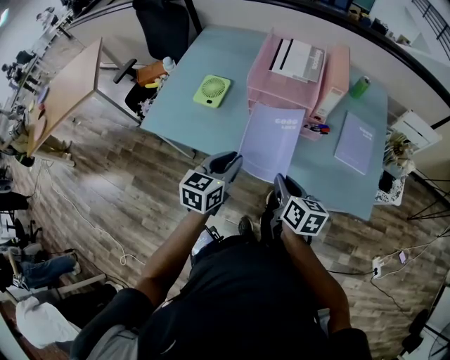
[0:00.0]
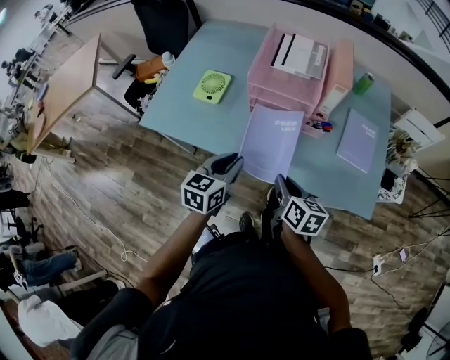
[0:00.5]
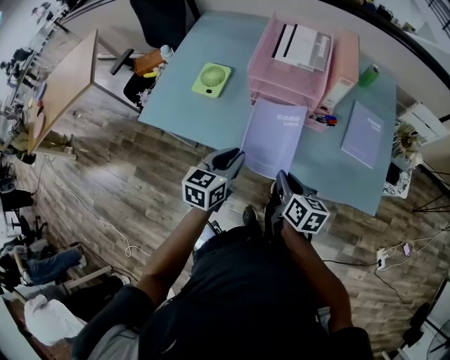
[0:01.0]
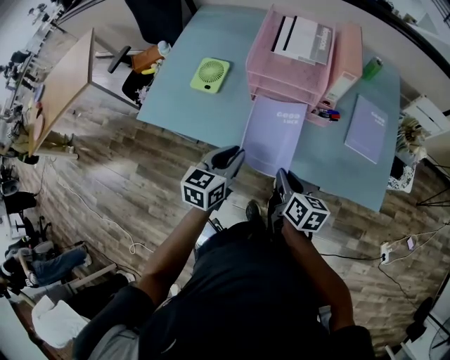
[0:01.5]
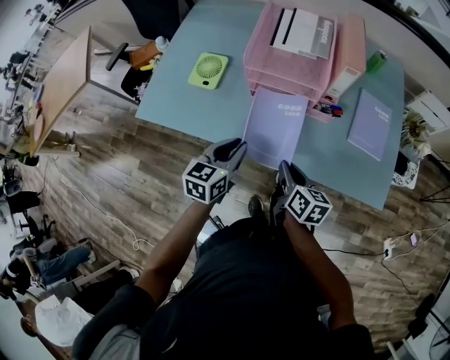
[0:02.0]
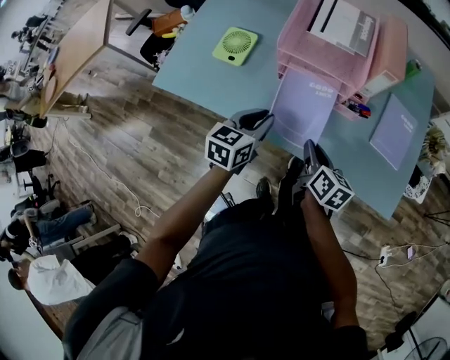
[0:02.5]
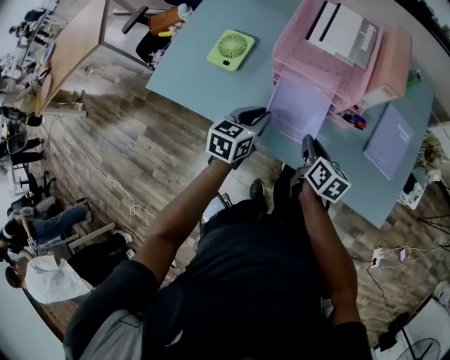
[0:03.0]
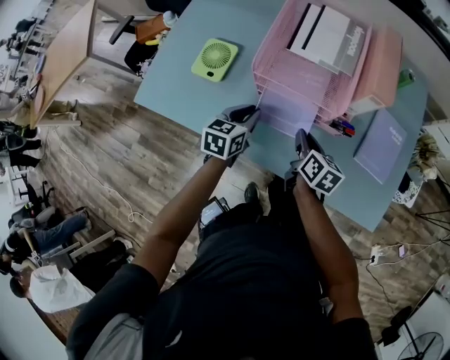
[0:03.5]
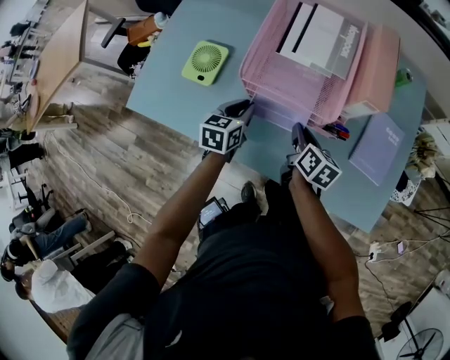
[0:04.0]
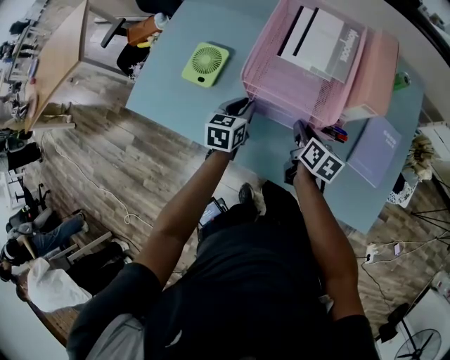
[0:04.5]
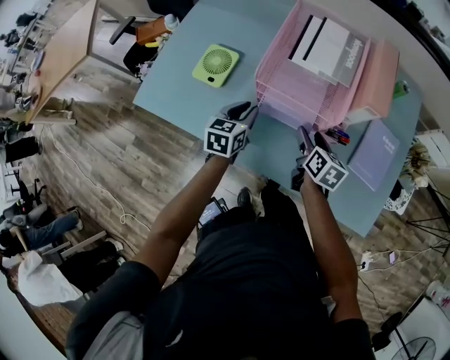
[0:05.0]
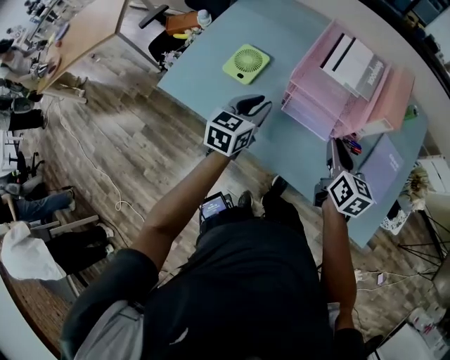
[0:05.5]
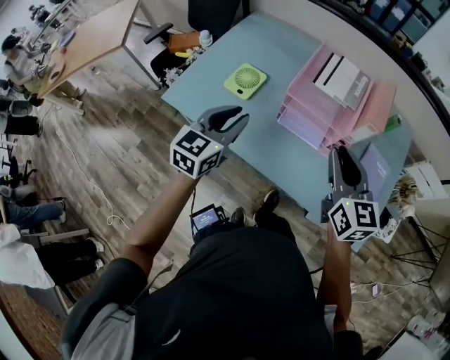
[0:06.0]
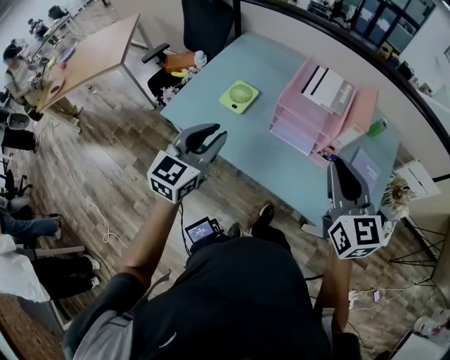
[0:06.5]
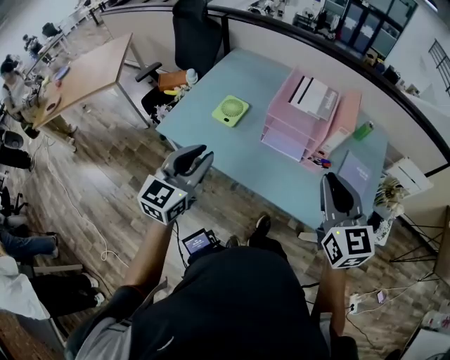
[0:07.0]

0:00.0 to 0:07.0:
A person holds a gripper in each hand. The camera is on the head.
0:00.0 to 0:02.0: The two grippers go approximately 5 cm downward.
0:02.0 to 0:03.5: The left gripper moves forward and downward, roughly 15 cm, while the right gripper shifts roughly 15 cm forward.
0:03.5 to 0:05.0: The right gripper opens its fingers.
0:05.0 to 0:07.0: The right gripper travels upward and backward by roughly 40 cm, rotates around the line of its fingers by about 40 degrees, counterclockwise from behind, and closes up. The left gripper travels upward, backward and to the left by roughly 35 cm, and swivels approximately 30 degrees.

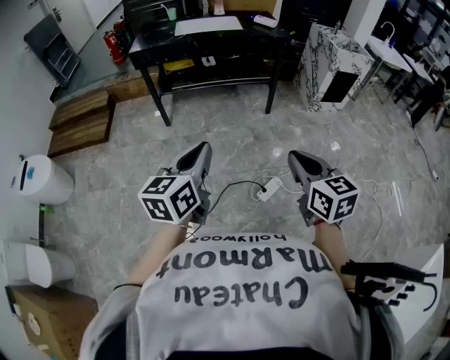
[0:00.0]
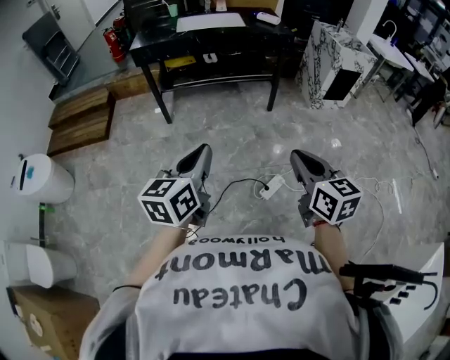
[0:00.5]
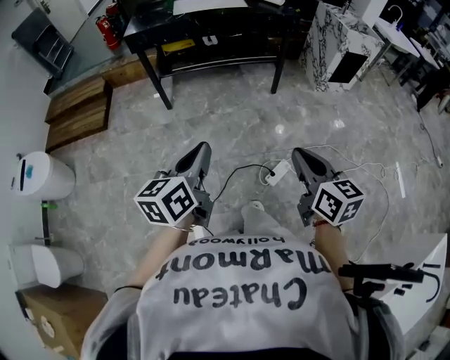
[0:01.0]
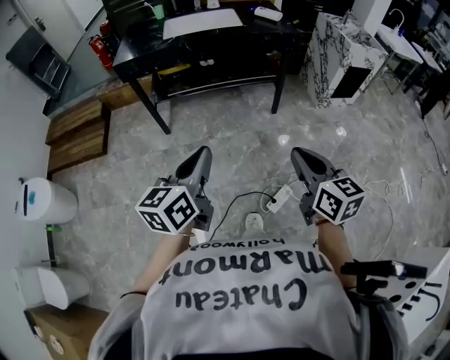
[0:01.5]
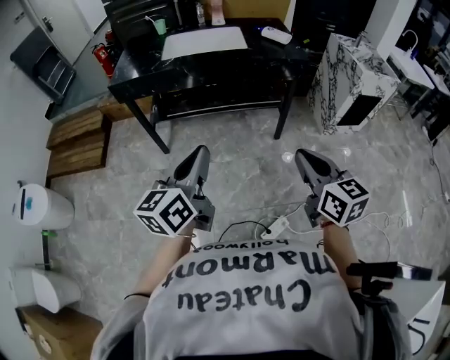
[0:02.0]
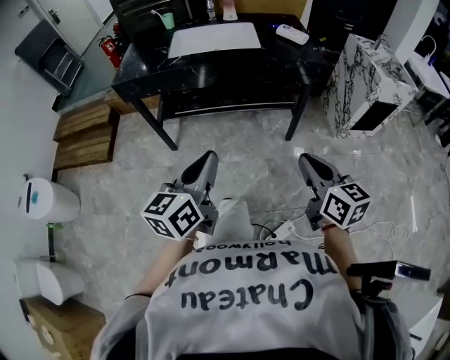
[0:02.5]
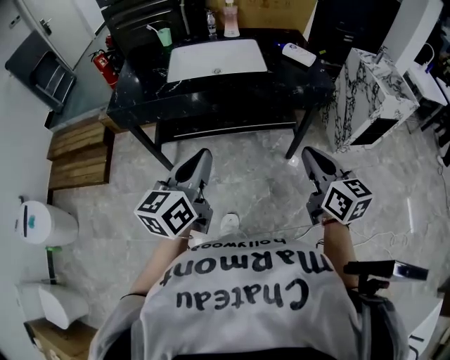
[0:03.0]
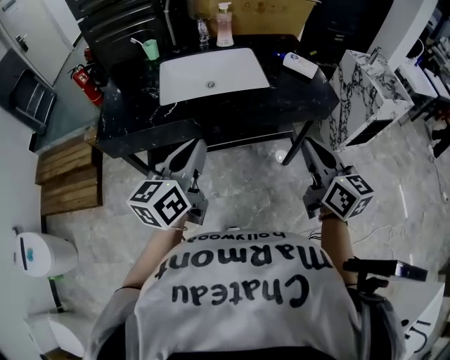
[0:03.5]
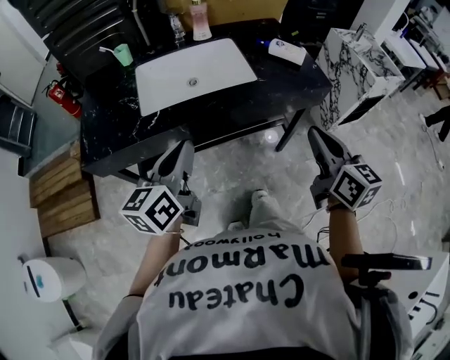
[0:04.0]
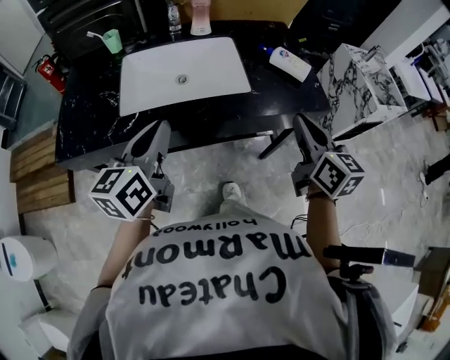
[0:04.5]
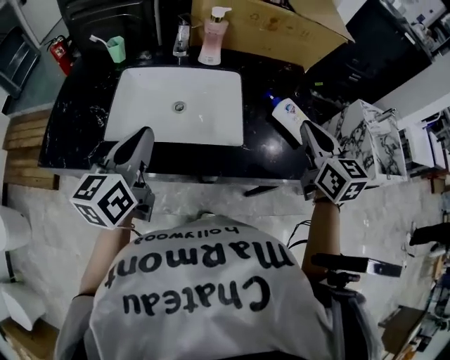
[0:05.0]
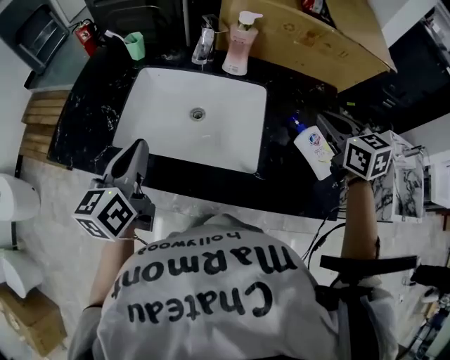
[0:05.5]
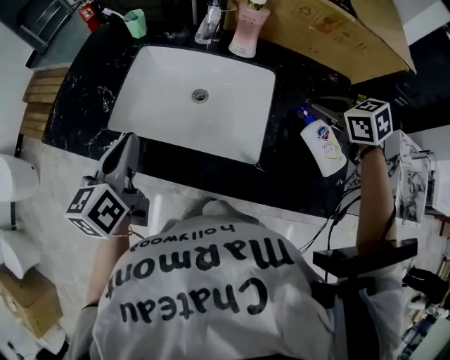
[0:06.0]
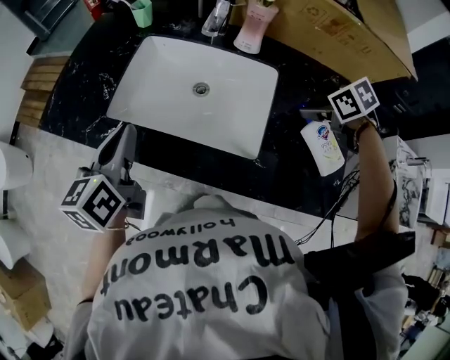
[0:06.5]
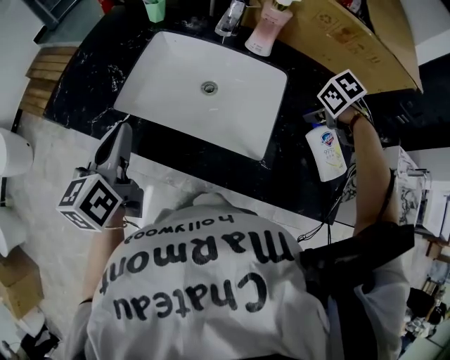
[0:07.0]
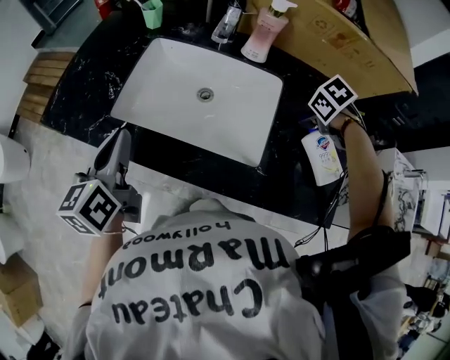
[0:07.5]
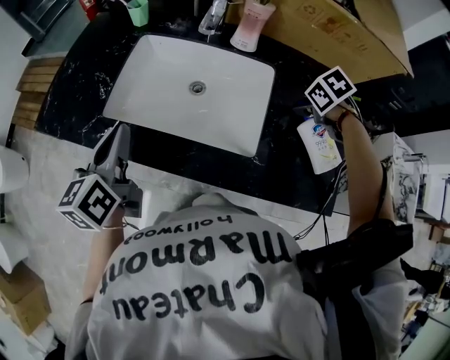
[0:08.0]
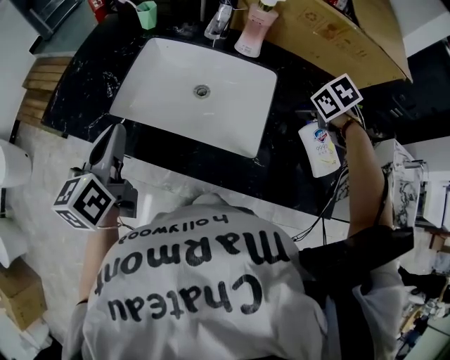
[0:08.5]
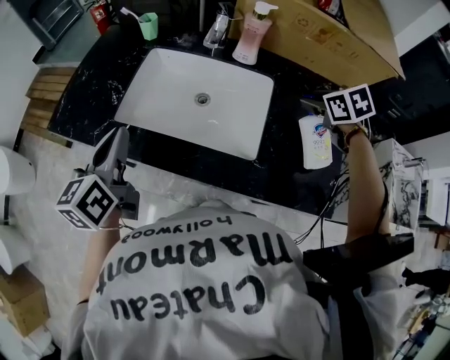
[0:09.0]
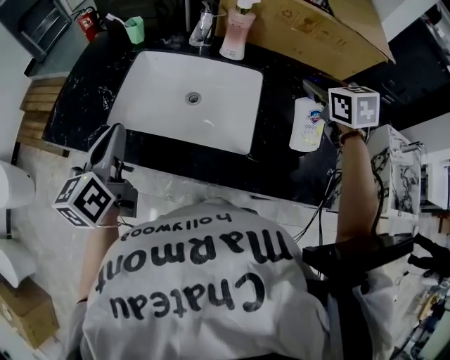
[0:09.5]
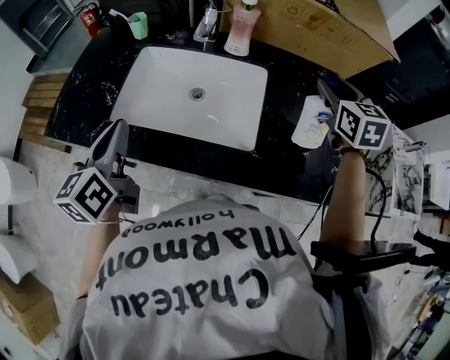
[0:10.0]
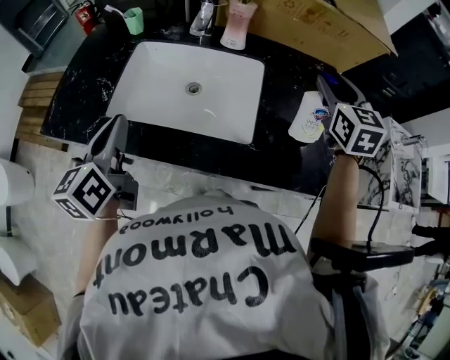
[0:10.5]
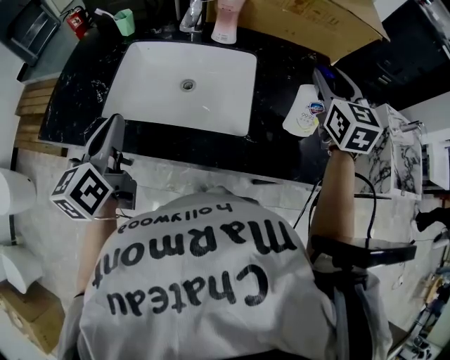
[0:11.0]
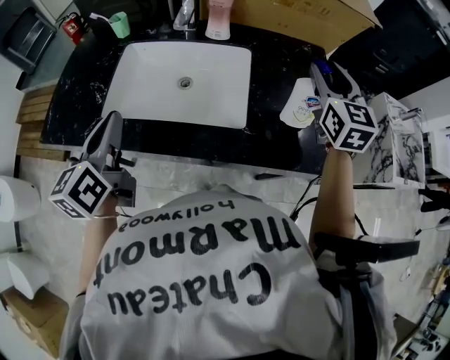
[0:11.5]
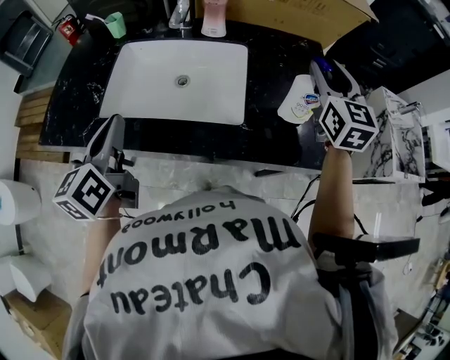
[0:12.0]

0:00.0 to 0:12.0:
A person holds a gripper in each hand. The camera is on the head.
0:00.0 to 0:02.0: The two grippers go approximately 35 cm forward.
0:02.0 to 0:04.0: The grippers both shift forward by about 35 cm.
0:04.0 to 0:06.0: The right gripper ends up roughly 50 cm from where it was, and angles its fingers downward, by approximately 40 degrees; the left gripper changes place by approximately 20 cm, and turns by about 40 degrees.
0:06.0 to 0:08.0: The right gripper travels downward by about 10 cm, tilts its fingers some 30 degrees downward, and opens.
0:08.0 to 0:10.0: The right gripper shifts some 15 cm upward, and tilts its fingers roughly 60 degrees upward.
0:10.0 to 0:12.0: The right gripper shifts about 10 cm backward.

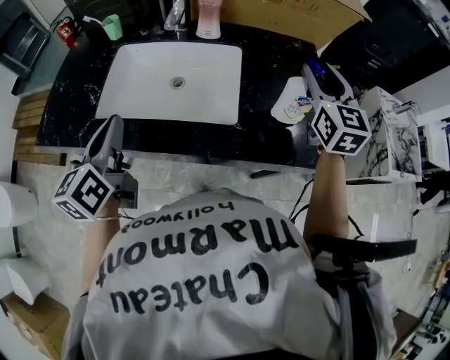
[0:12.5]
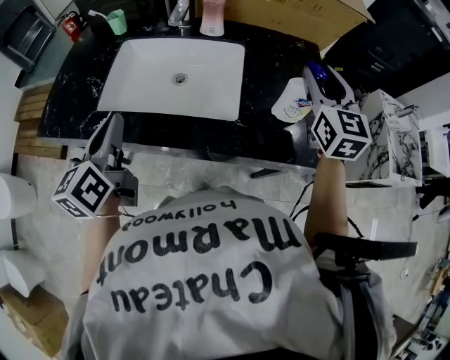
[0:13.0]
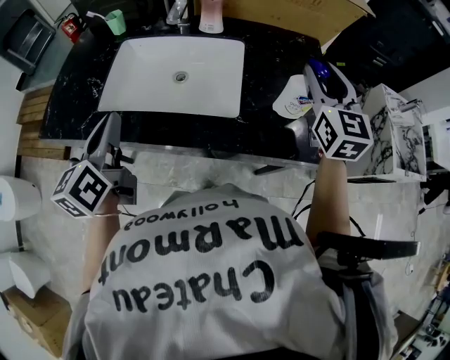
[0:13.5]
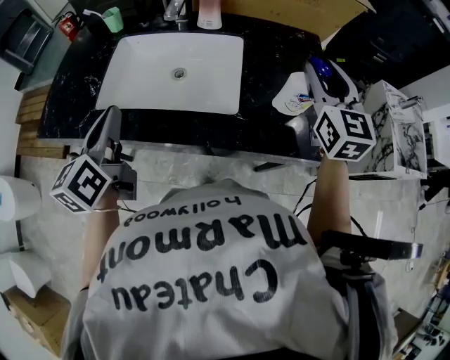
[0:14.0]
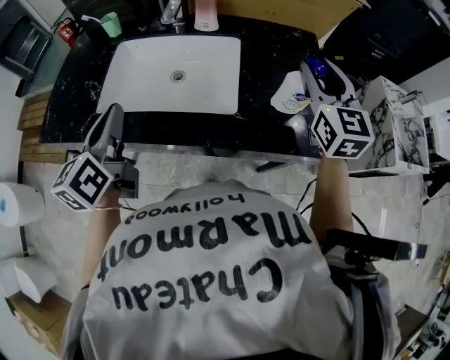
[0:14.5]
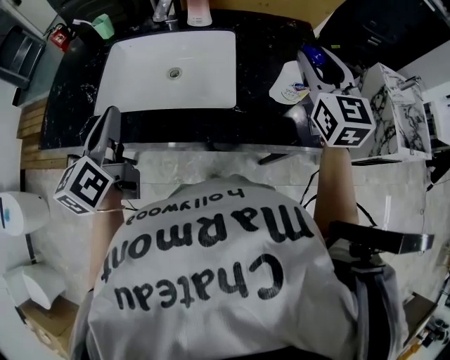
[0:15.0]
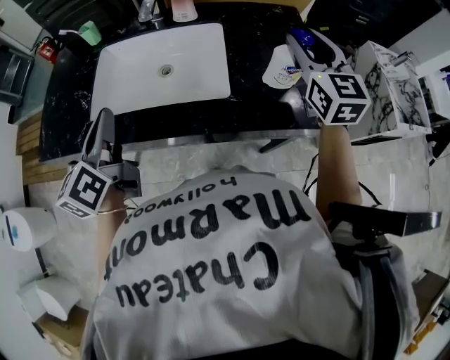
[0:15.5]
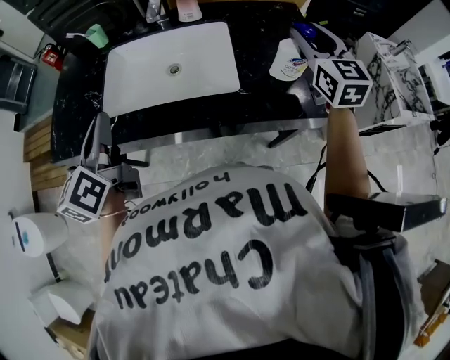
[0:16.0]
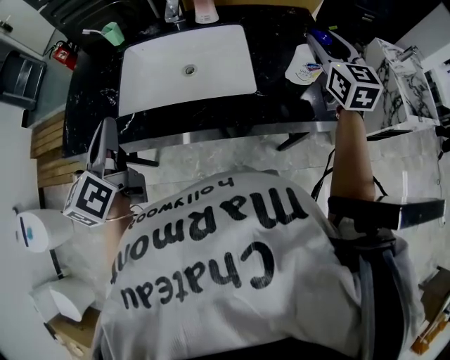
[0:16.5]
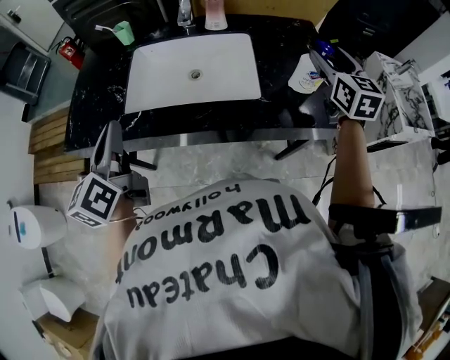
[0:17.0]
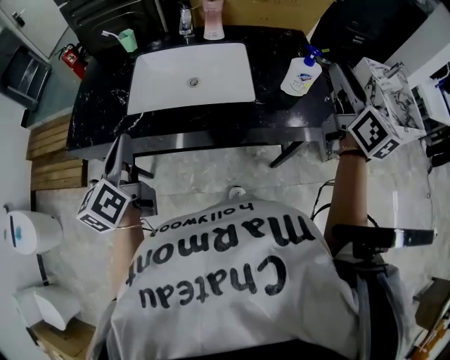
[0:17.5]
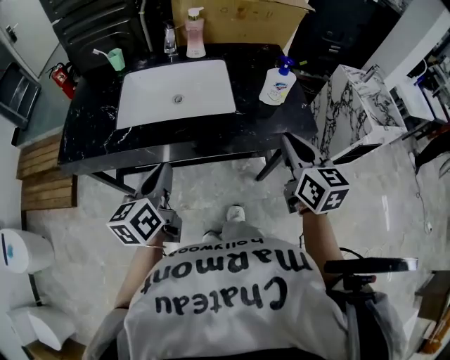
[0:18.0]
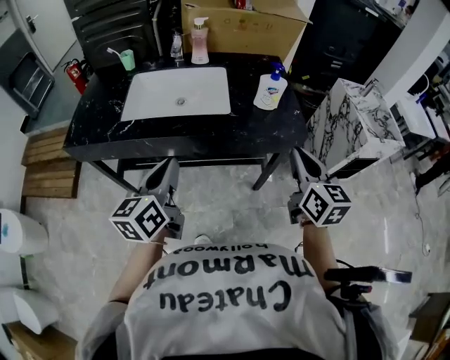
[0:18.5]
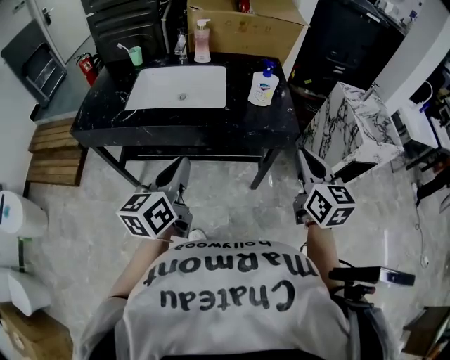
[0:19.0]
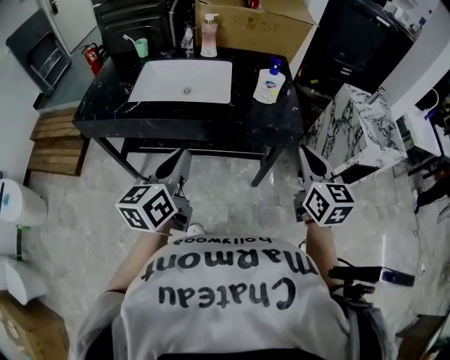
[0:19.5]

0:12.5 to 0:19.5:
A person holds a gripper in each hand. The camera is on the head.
0:12.5 to 0:14.5: The grippers move only a little.
0:14.5 to 0:16.0: The left gripper shifts by some 5 cm.
0:16.0 to 0:17.5: The right gripper travels backward and upward by approximately 15 cm, and swivels approximately 30 degrees; the left gripper goes roughly 10 cm backward.
0:17.5 to 0:19.5: The right gripper goes approximately 20 cm backward and downward, turns by roughly 20 degrees, and closes up, while the left gripper heads to the right and backward, covering some 25 cm.

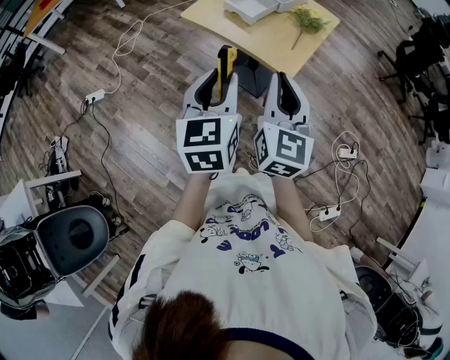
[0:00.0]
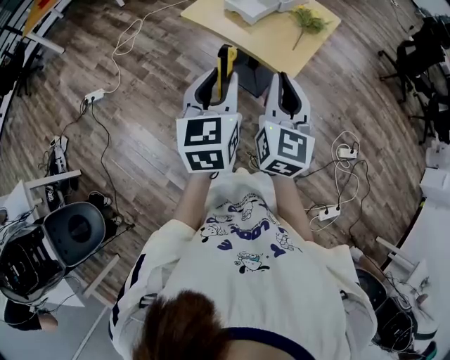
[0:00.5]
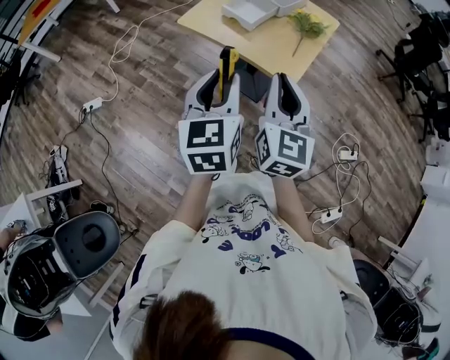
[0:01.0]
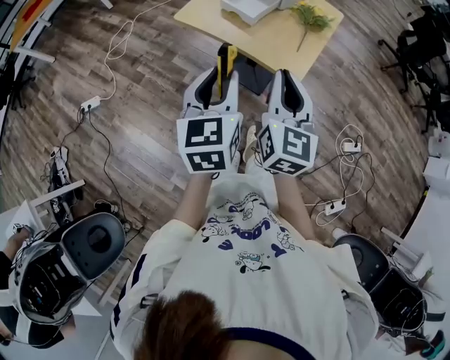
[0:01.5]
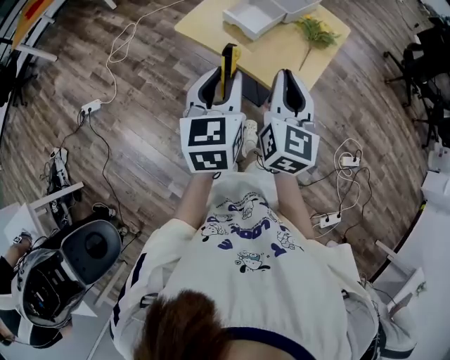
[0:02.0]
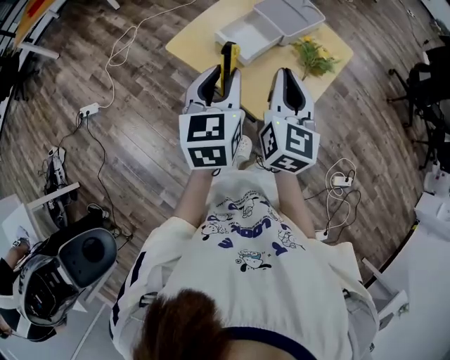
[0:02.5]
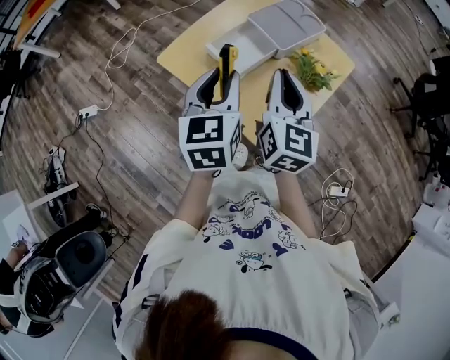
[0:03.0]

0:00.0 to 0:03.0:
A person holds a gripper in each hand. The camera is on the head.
0:00.0 to 0:01.5: Both grippers travel together forward, roughly 5 cm.
0:01.5 to 0:03.0: Both grippers travel together forward, roughly 30 cm.
